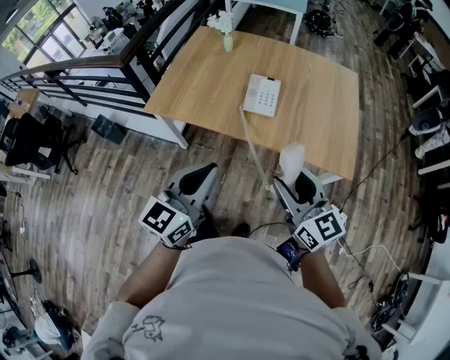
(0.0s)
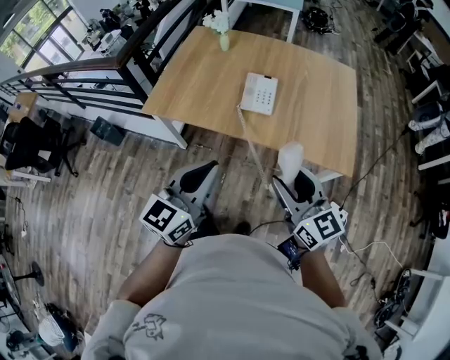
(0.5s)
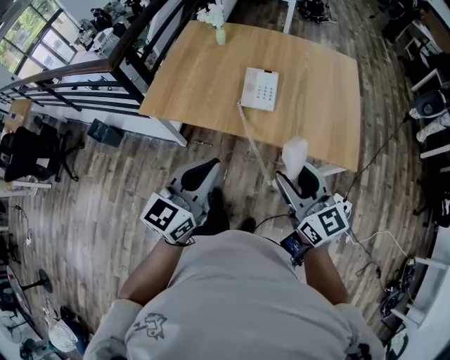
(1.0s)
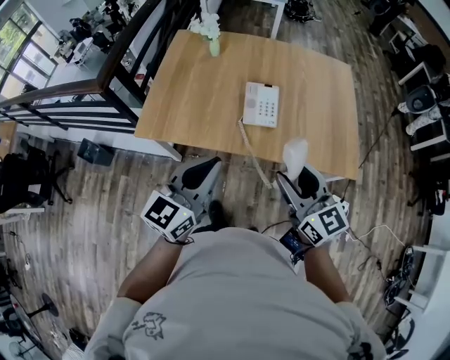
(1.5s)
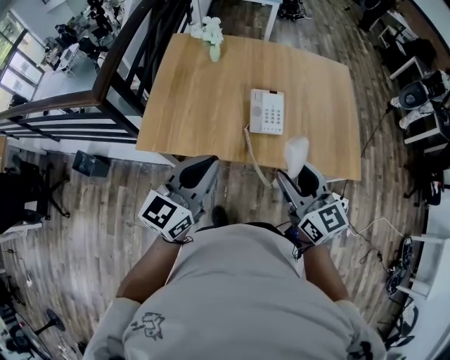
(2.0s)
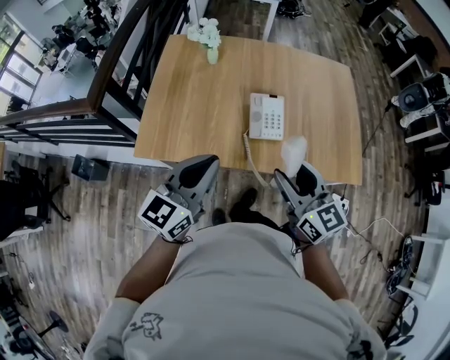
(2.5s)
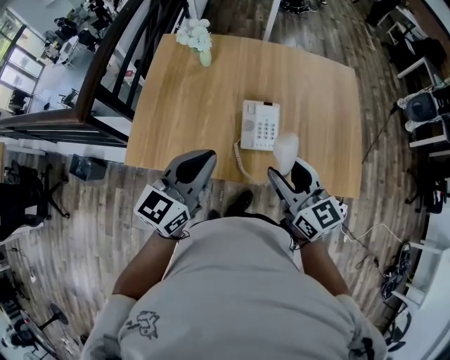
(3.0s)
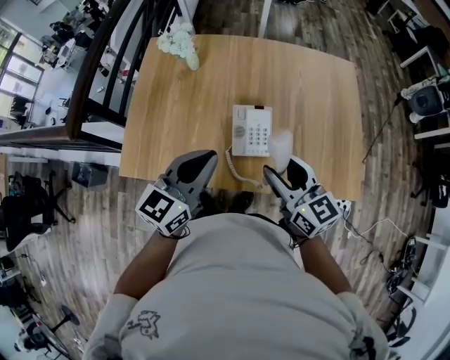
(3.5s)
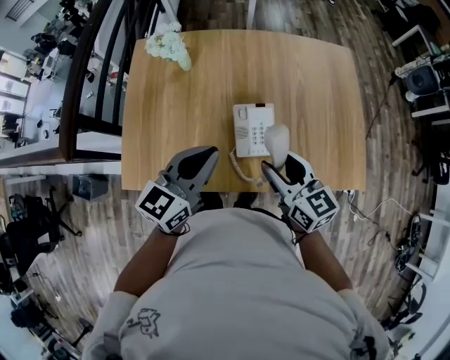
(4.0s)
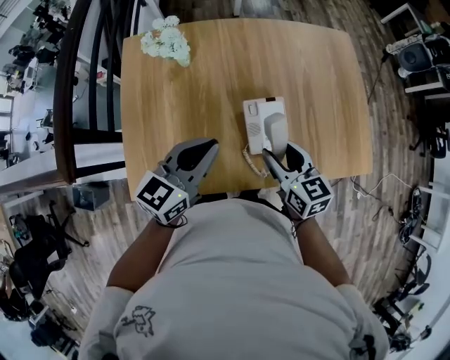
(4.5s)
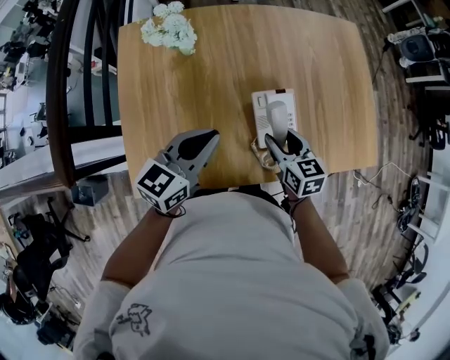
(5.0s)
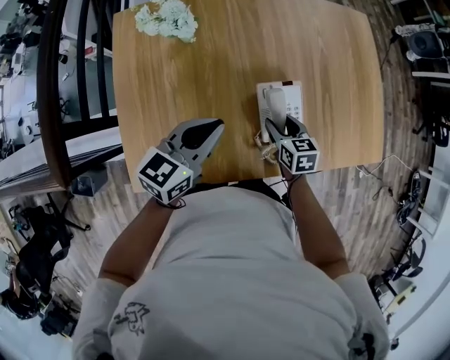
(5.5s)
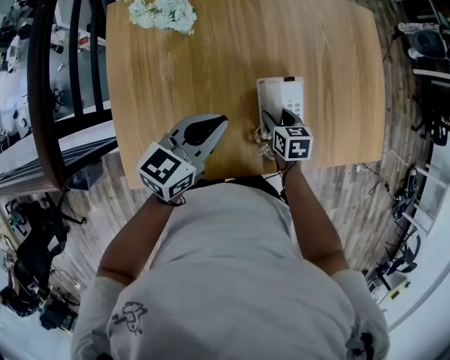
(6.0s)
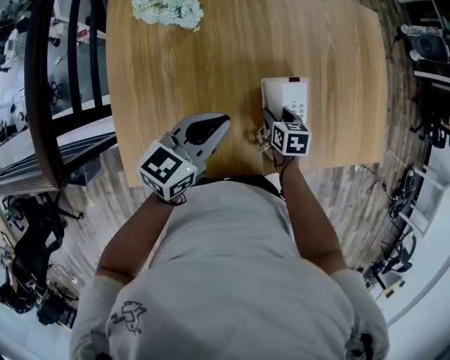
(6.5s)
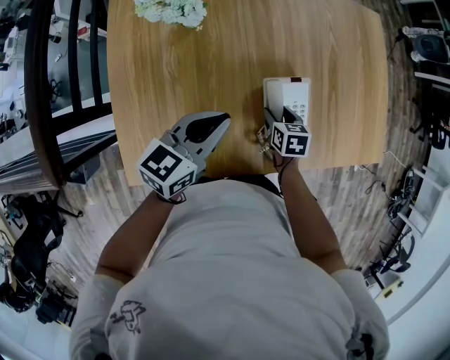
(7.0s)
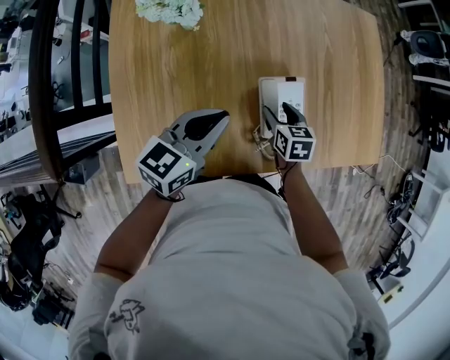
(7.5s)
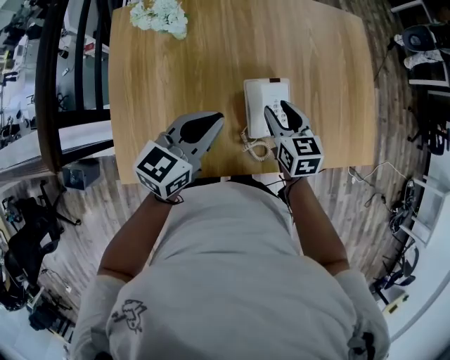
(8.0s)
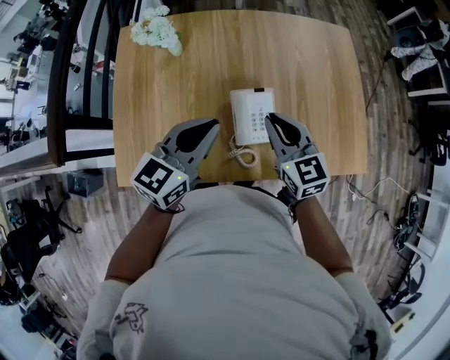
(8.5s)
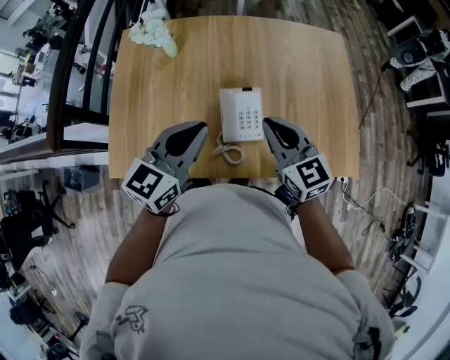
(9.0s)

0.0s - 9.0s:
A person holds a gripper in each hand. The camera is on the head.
0.0s - 2.0s: Both grippers move forward and to the left, about 20 cm.
2.0s - 4.5s: The right gripper shifts about 30 cm forward and downward, and swivels some 20 degrees; the left gripper goes approximately 25 cm forward, and swivels about 20 degrees.
4.5s - 7.0s: The left gripper heads downward, covering some 10 cm, while the right gripper moves downward, approximately 25 cm, and tilts its fingers about 30 degrees downward.
7.0s - 9.0s: The right gripper shifts about 30 cm upward, points its fingers some 40 degrees further upward, and closes up, while the left gripper heads upward, to the right and backward, covering roughly 20 cm, and changes its angle by some 20 degrees.

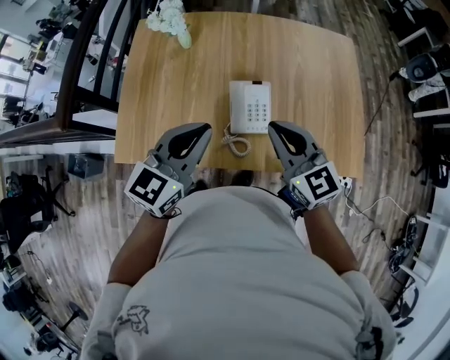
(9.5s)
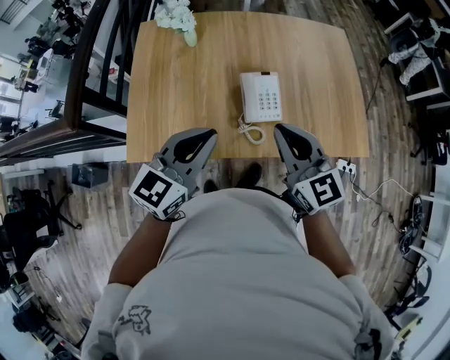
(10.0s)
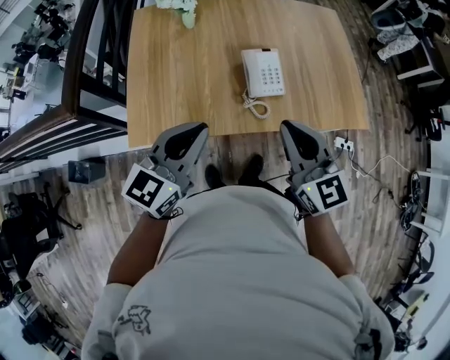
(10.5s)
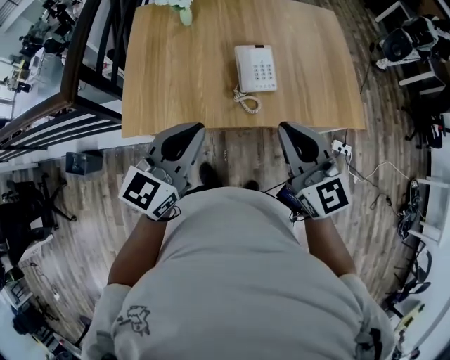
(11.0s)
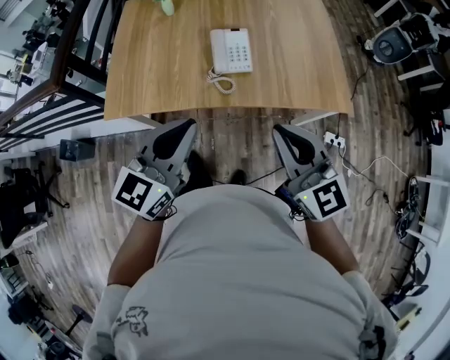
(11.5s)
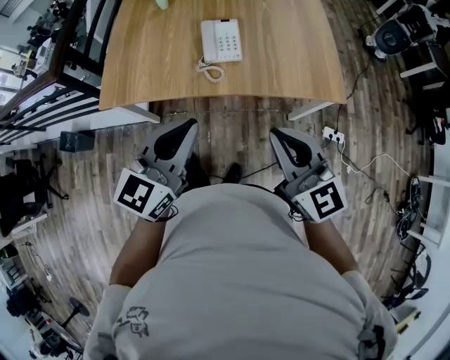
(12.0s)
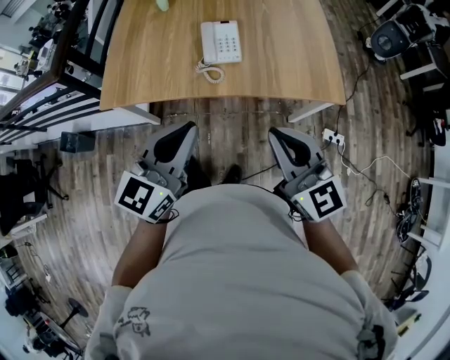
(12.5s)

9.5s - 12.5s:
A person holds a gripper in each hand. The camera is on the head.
9.5s - 11.0s: The two grippers go roughly 20 cm backward.
11.0s - 12.5s: The two grippers go some 20 cm to the right and backward.

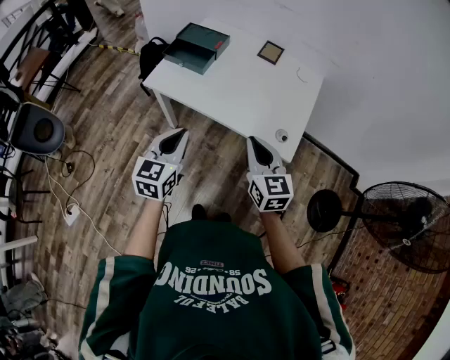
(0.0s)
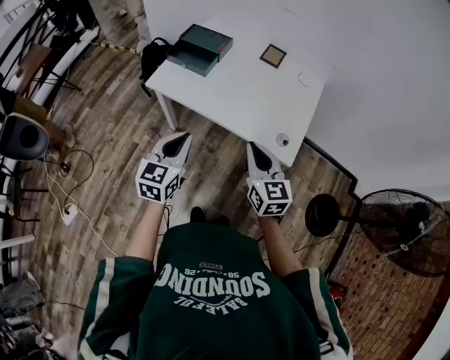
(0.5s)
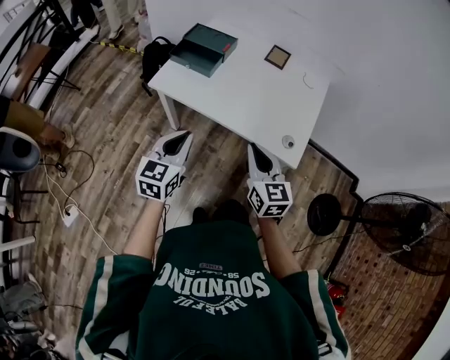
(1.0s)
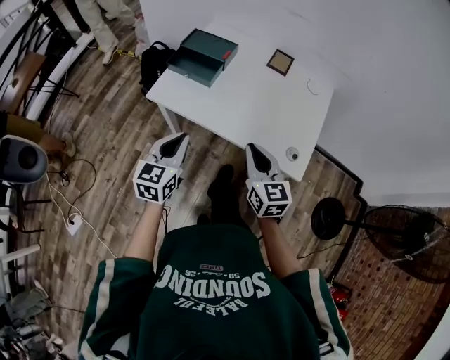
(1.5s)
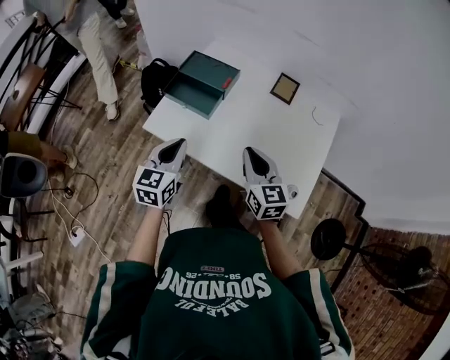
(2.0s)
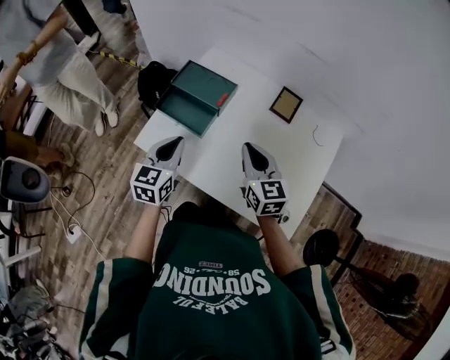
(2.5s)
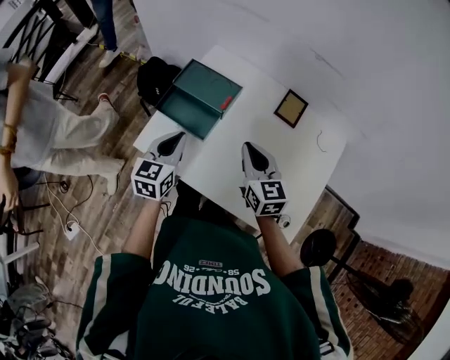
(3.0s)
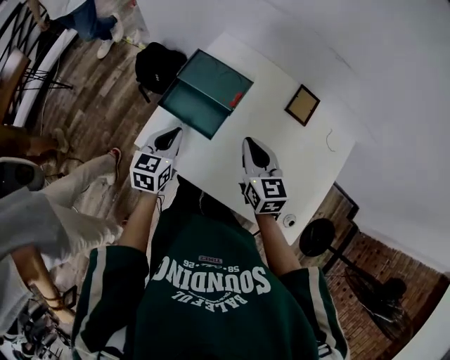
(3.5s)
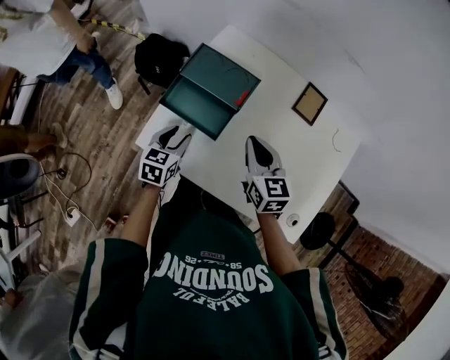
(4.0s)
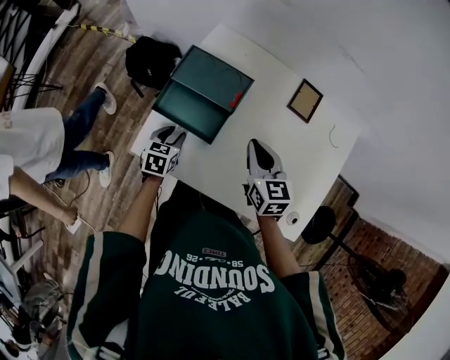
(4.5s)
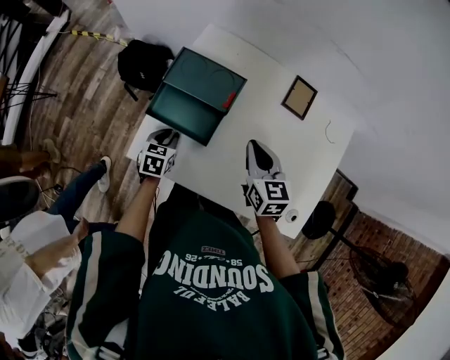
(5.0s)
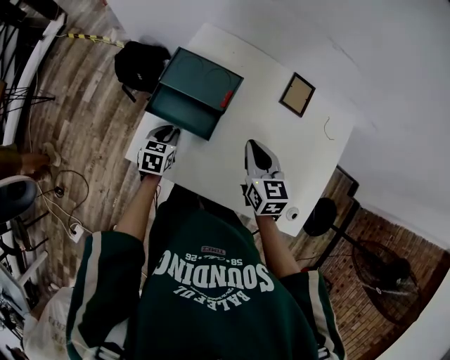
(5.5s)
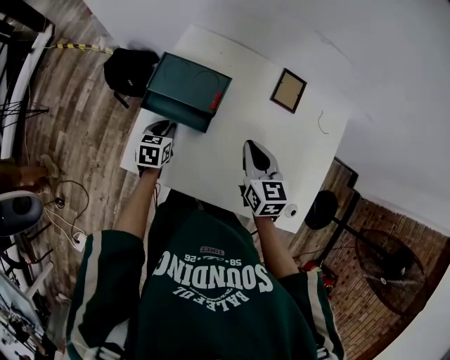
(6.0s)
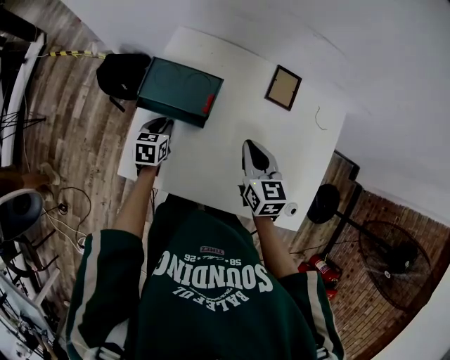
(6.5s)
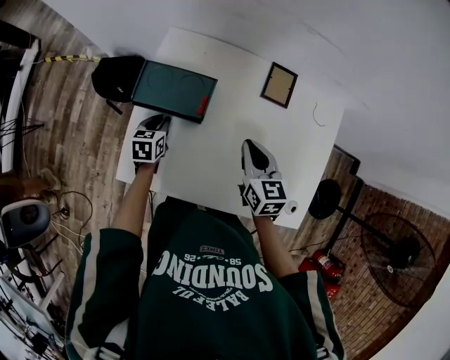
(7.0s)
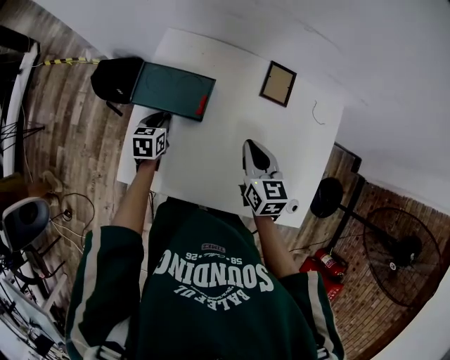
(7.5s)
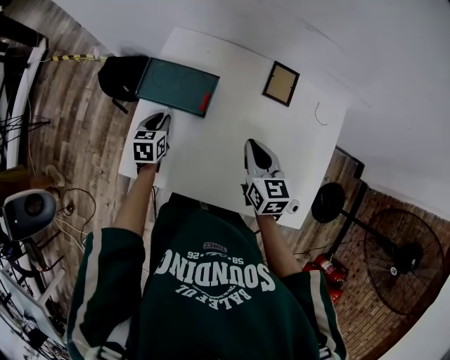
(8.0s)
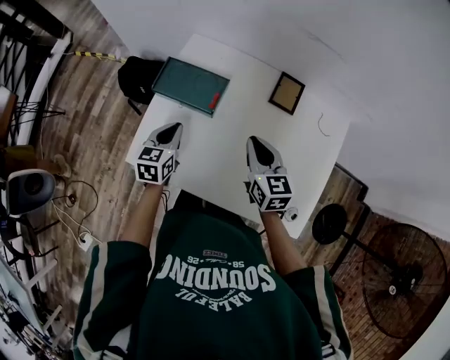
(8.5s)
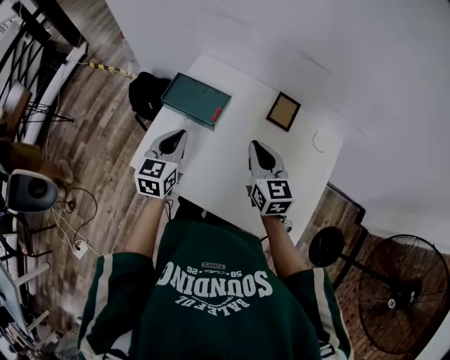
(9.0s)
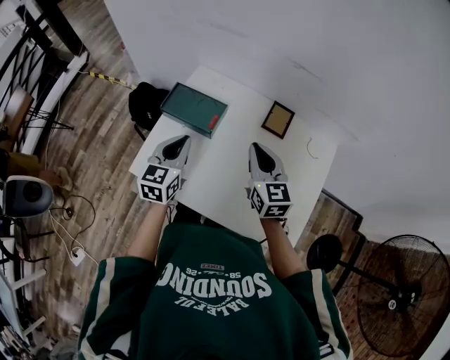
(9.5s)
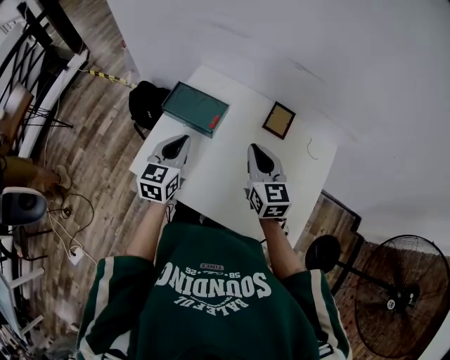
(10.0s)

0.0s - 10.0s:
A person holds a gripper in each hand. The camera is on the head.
0.0s - 2.0s: The two grippers go about 20 cm forward.
2.0s - 4.0s: The left gripper is displaced forward and downward by about 25 cm, changes its angle by about 20 degrees, and opens up. Meanwhile the right gripper moves forward, roughly 20 cm.
4.0s - 6.0s: The left gripper moves forward and downward, some 10 cm, while the right gripper travels to the right by roughly 5 cm.
8.0s - 10.0s: The right gripper goes approximately 10 cm upward, and rotates approximately 20 degrees. Meanwhile the left gripper moves upward and backward, roughly 25 cm, and changes its angle by some 30 degrees.

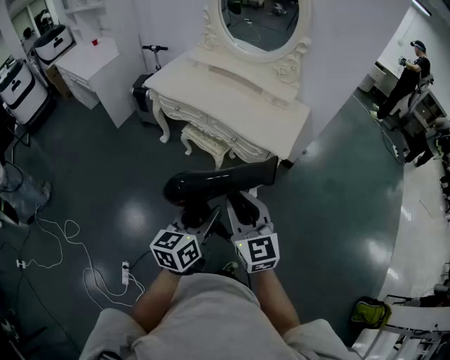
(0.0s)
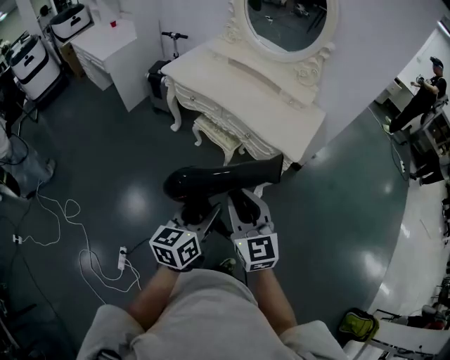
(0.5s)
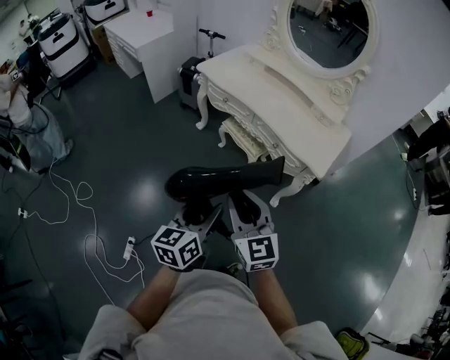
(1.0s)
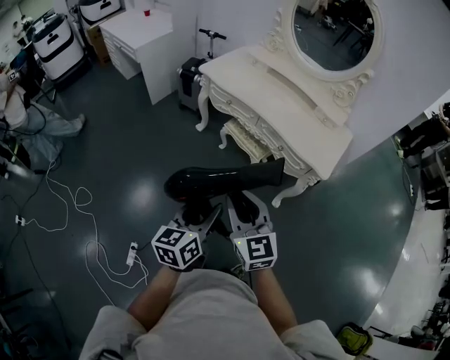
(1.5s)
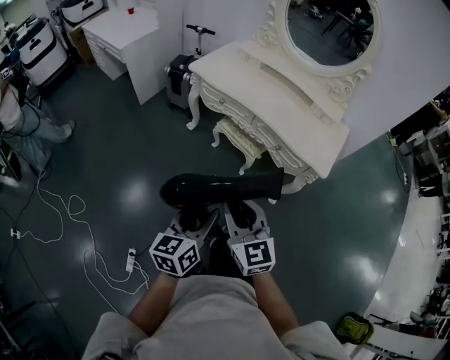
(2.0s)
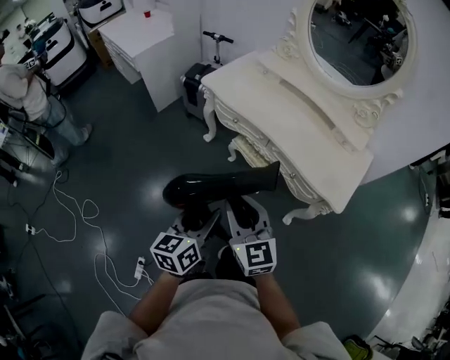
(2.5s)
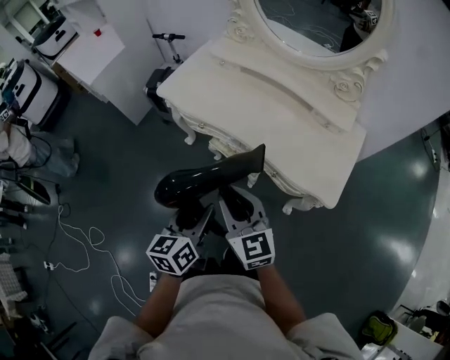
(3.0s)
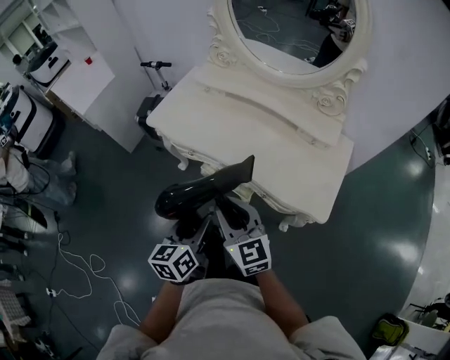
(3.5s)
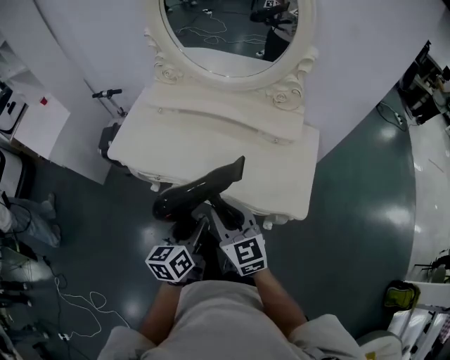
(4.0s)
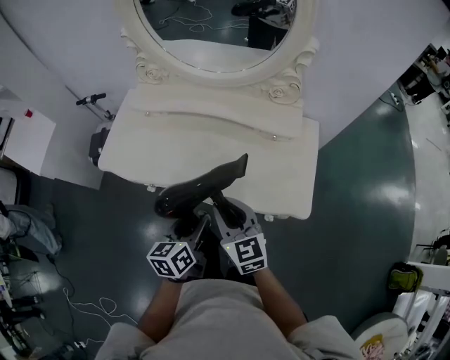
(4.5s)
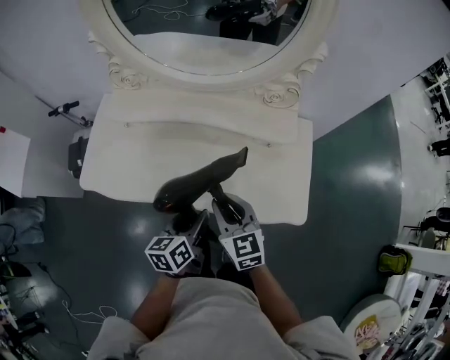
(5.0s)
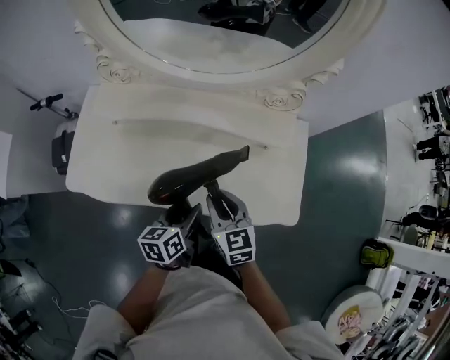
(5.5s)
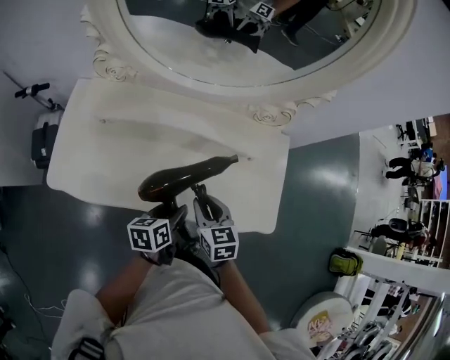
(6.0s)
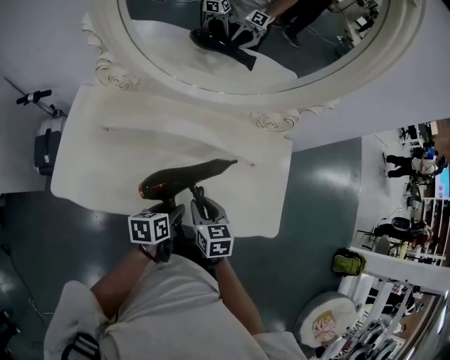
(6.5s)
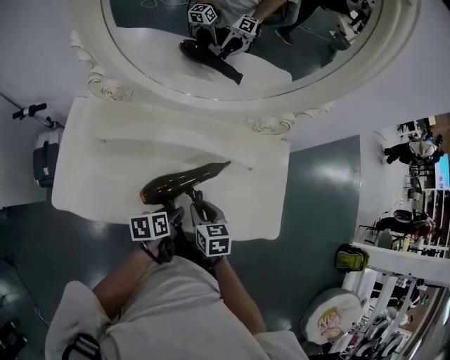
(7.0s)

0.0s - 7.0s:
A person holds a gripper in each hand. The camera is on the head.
0.0s - 2.0s: Both grippers travel together to the left, roughly 20 cm.
2.0s - 3.5s: The two grippers go some 35 cm forward and to the right.
3.5s - 5.0s: The left gripper changes place by some 25 cm, and turns by roughly 30 degrees; the right gripper changes place by about 25 cm, and changes its angle by roughly 30 degrees.
5.0s - 7.0s: Both grippers move downward and forward, some 15 cm. The right gripper swivels some 30 degrees, while the left gripper swivels about 30 degrees.
